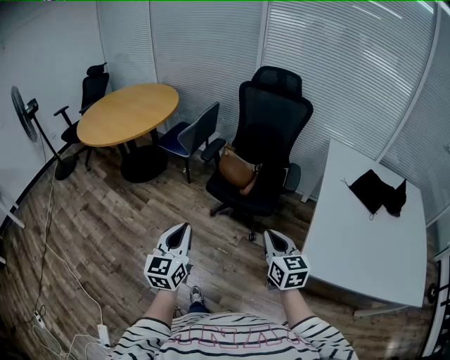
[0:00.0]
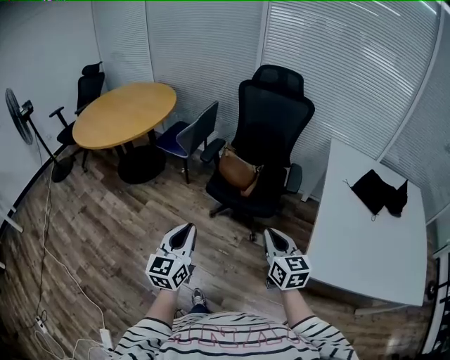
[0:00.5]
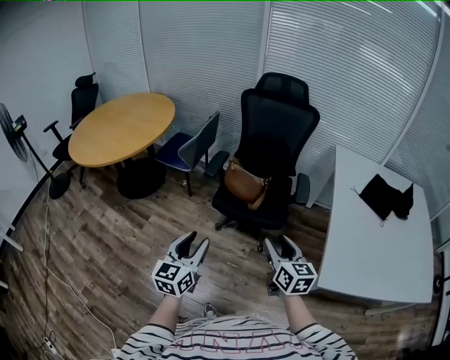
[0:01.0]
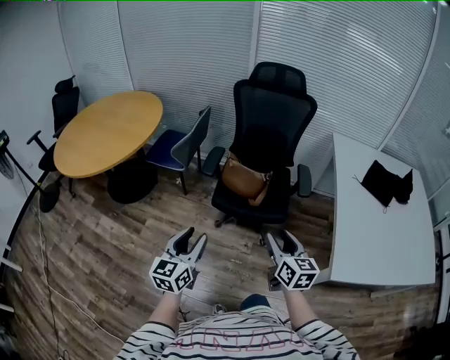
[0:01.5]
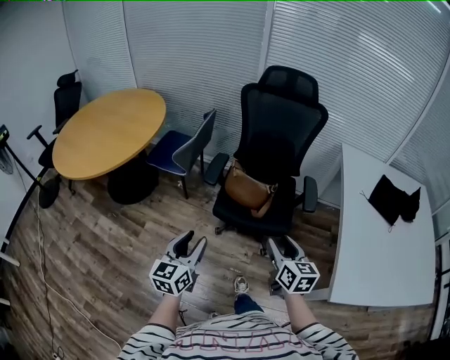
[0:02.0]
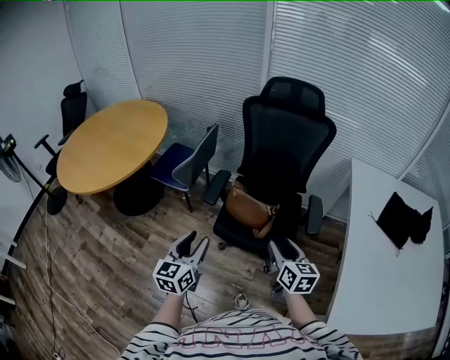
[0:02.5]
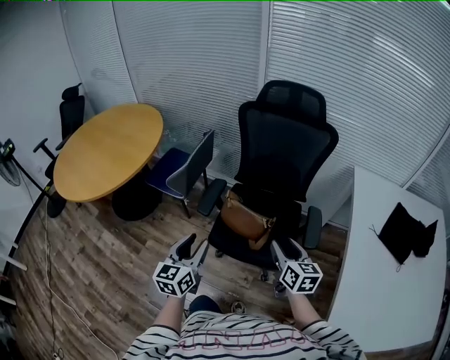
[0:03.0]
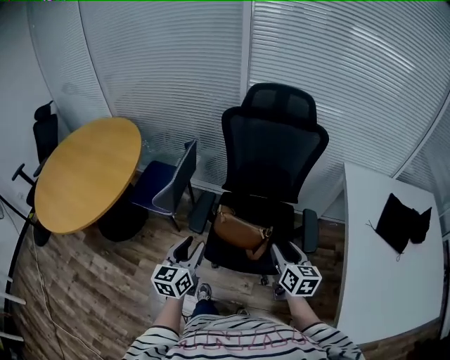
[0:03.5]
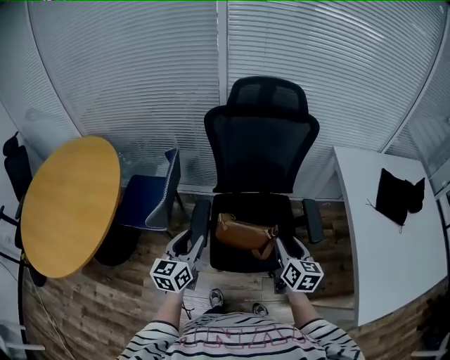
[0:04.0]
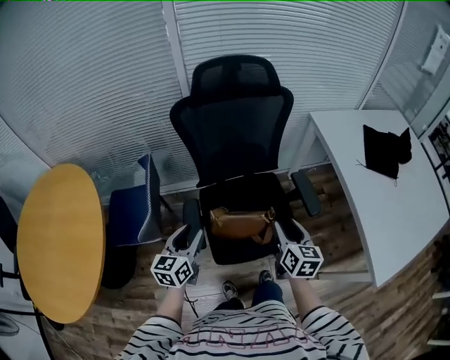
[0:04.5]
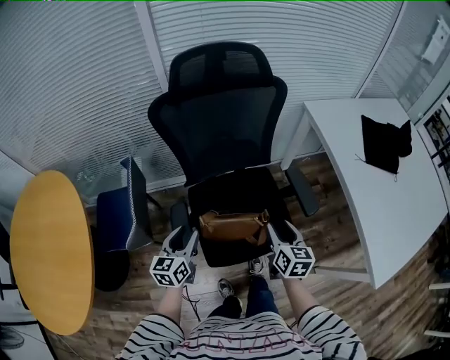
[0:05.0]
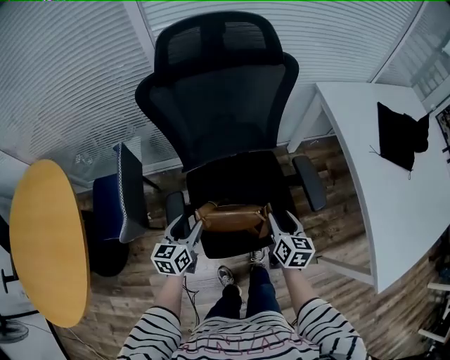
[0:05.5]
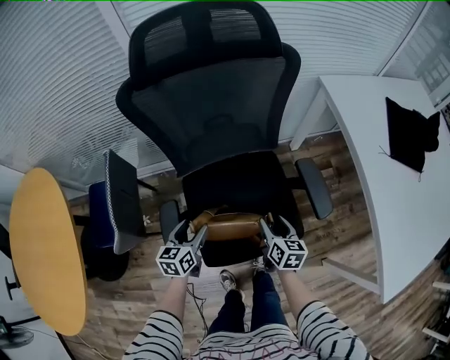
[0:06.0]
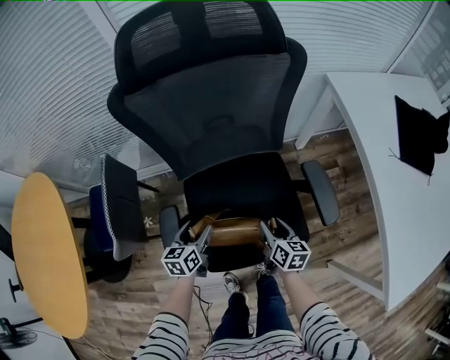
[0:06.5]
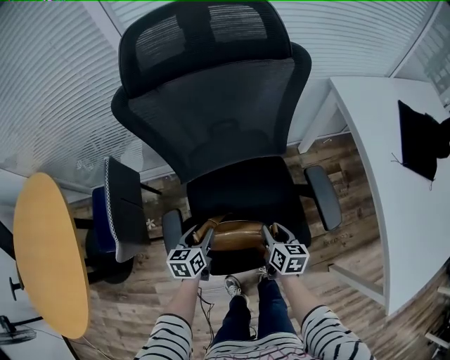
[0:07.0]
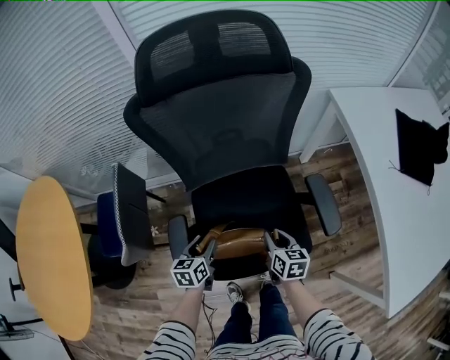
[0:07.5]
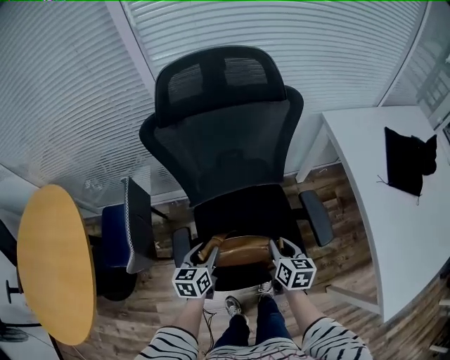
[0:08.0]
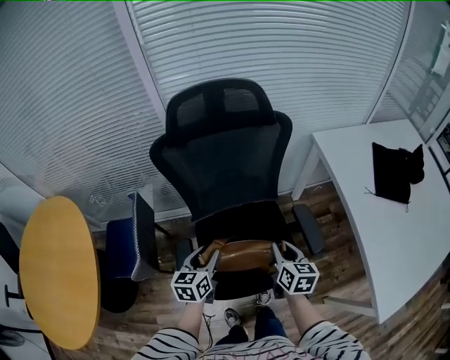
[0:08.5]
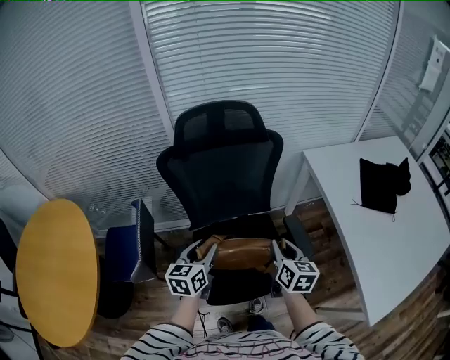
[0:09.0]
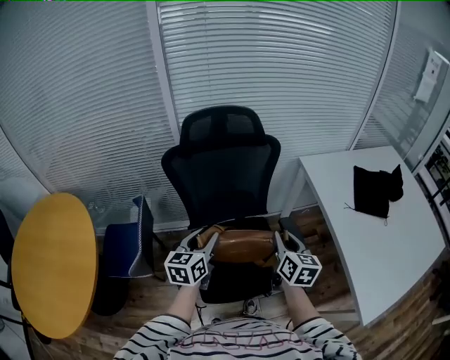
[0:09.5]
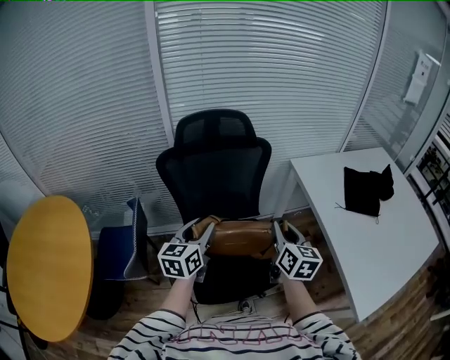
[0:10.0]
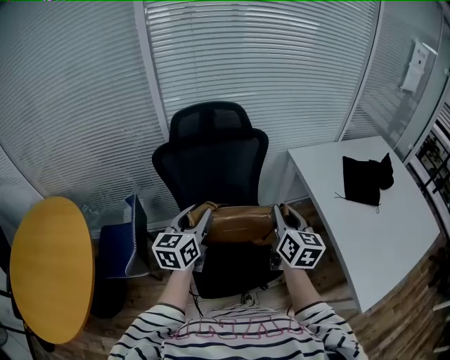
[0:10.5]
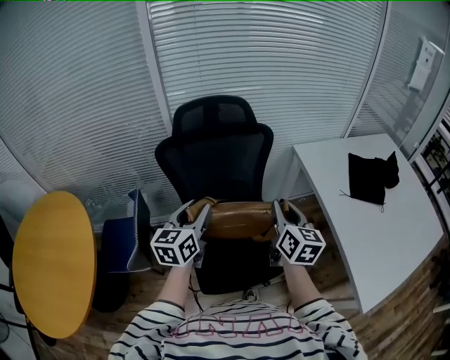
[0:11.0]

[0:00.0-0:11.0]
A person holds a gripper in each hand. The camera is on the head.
0:00.0 to 0:02.0: The two grippers go about 25 cm forward and to the left. The right gripper opens. The left gripper opens up.
0:02.0 to 0:03.5: The grippers both shift forward by about 25 cm.
0:03.5 to 0:05.5: The left gripper moves approximately 30 cm, and rotates roughly 30 degrees; the right gripper travels downward by approximately 15 cm, and rotates roughly 30 degrees.
0:05.5 to 0:07.5: The two grippers go roughly 10 cm downward. The right gripper closes its fingers.
0:07.5 to 0:09.0: Both grippers move upward, about 25 cm.
0:09.0 to 0:11.0: The two grippers go roughly 15 cm upward.

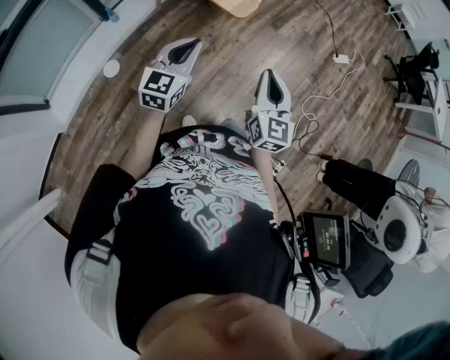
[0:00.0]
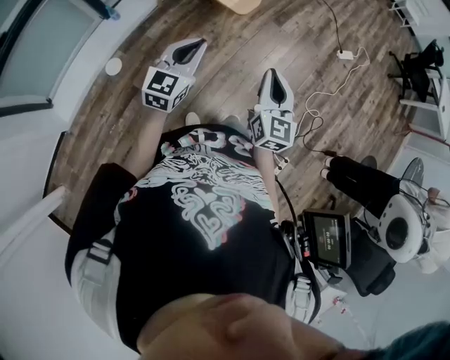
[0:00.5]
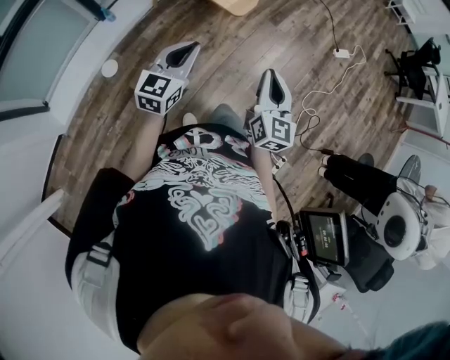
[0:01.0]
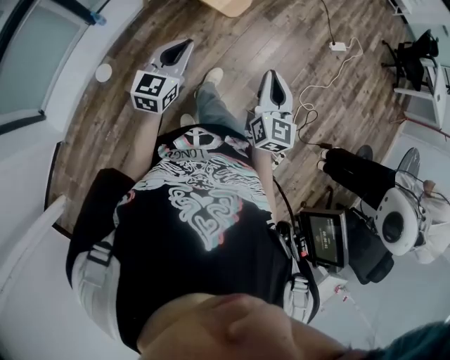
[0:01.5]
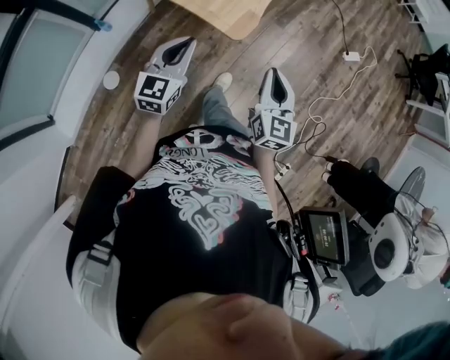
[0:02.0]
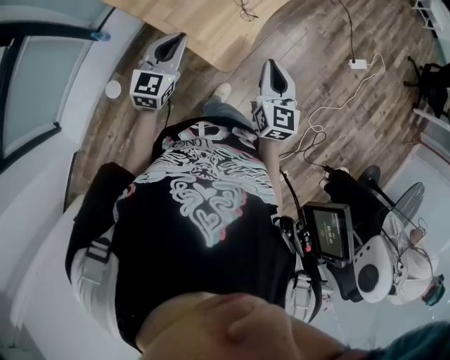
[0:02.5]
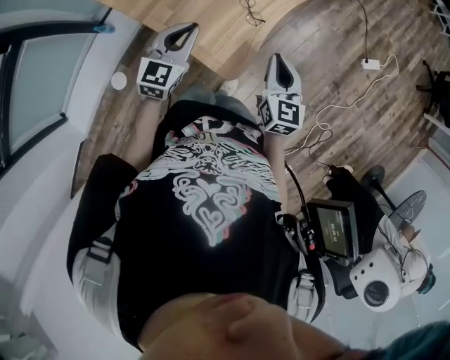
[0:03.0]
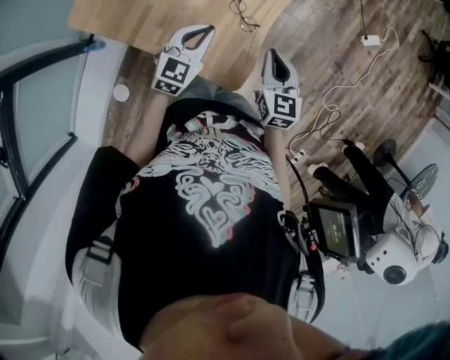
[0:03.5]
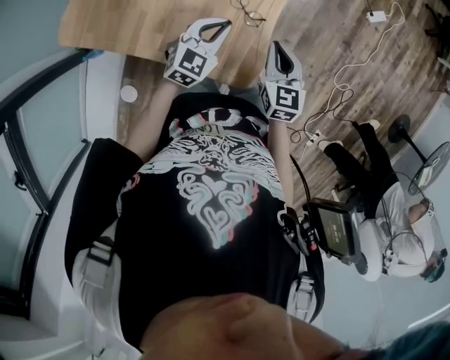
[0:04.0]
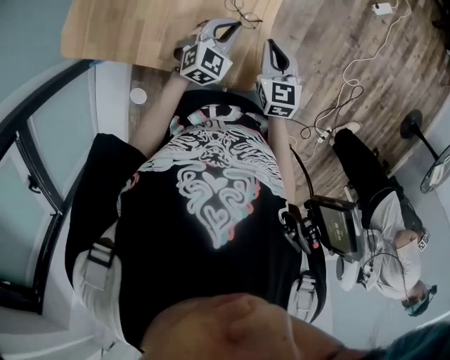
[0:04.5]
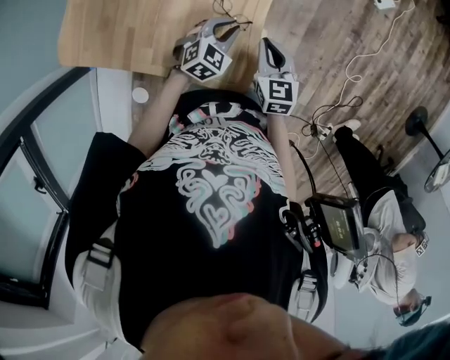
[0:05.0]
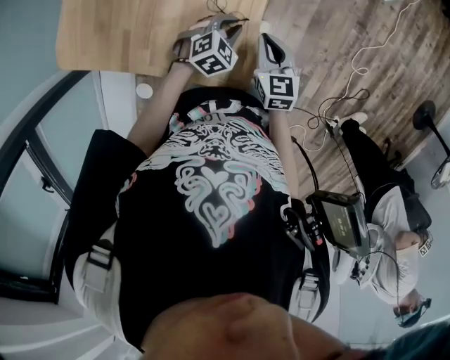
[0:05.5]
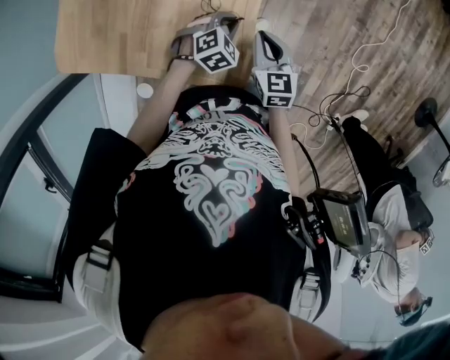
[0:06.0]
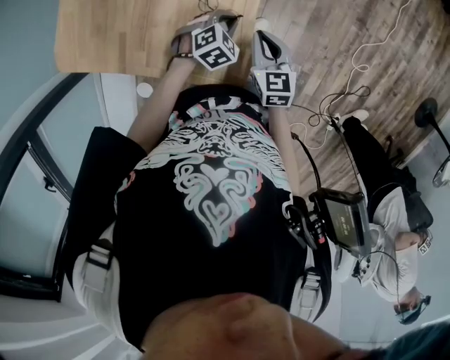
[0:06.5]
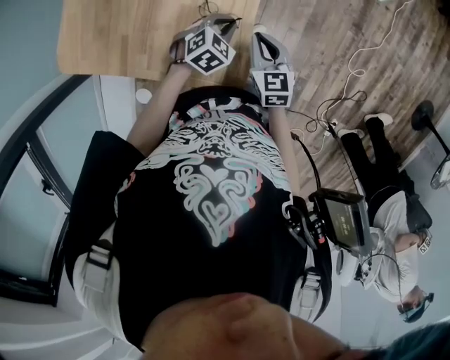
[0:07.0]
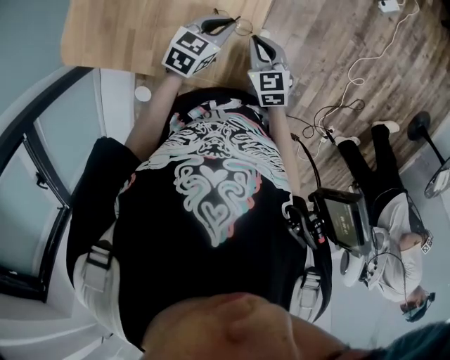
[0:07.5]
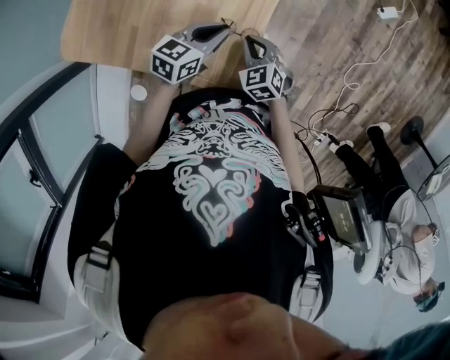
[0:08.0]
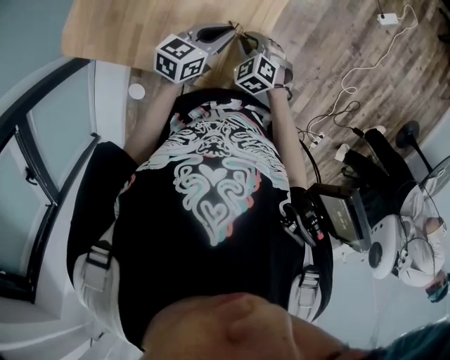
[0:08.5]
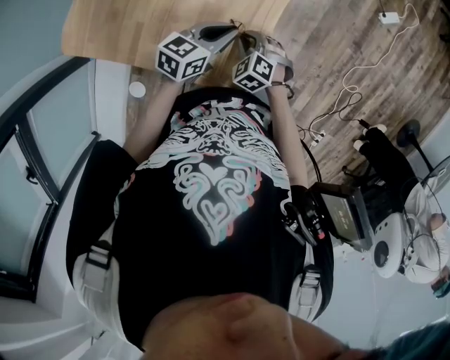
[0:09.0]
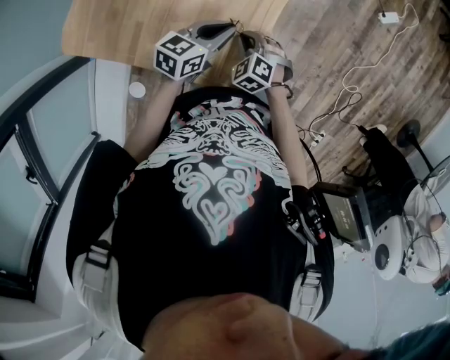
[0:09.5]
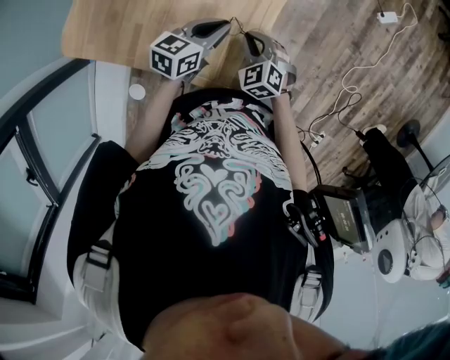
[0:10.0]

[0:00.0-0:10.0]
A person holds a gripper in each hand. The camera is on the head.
0:00.0 to 0:02.0: Both grippers travel together forward, about 20 cm.
0:02.0 to 0:04.0: Both grippers move forward and downward, about 25 cm. The left gripper swivels roughly 30 degrees.
0:04.0 to 0:06.0: The right gripper heads downward, covering approximately 5 cm. Meanwhile the left gripper moves downward and to the right, approximately 15 cm, and tips its fingers downward by some 30 degrees.
0:06.0 to 0:08.0: The left gripper moves upward and to the left, about 10 cm, and angles its fingers upward, by some 30 degrees; the right gripper heads to the left, covering approximately 5 cm, and turns by roughly 30 degrees.

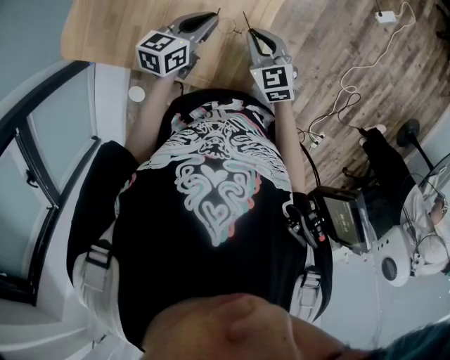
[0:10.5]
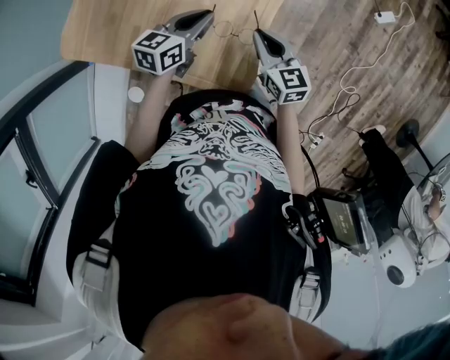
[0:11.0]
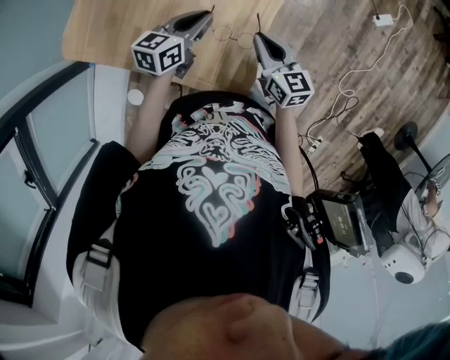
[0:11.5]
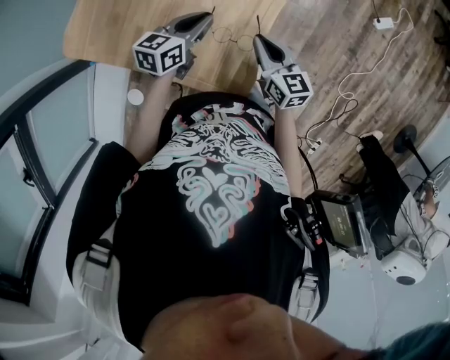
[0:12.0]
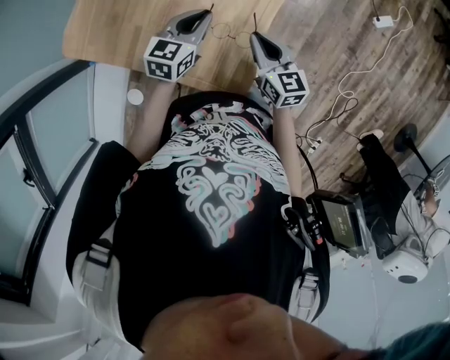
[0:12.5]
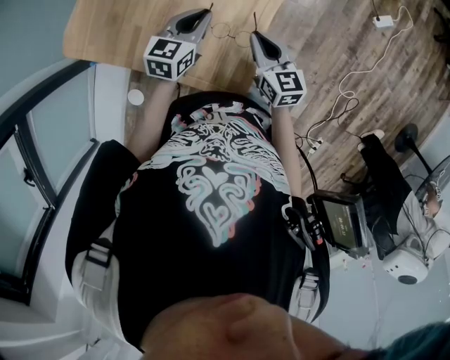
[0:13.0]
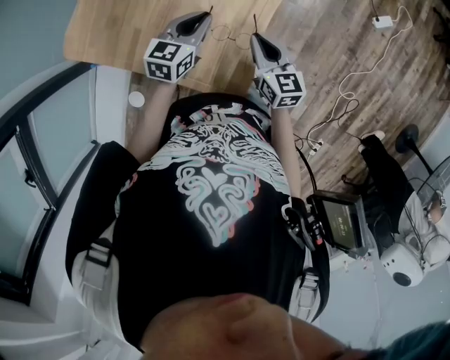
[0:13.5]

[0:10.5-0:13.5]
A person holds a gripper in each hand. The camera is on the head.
0:10.5 to 0:12.0: The right gripper changes its angle by approximately 30 degrees.
0:12.0 to 0:13.5: The grippers make only small movements.

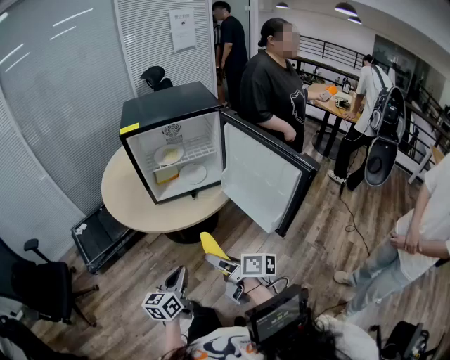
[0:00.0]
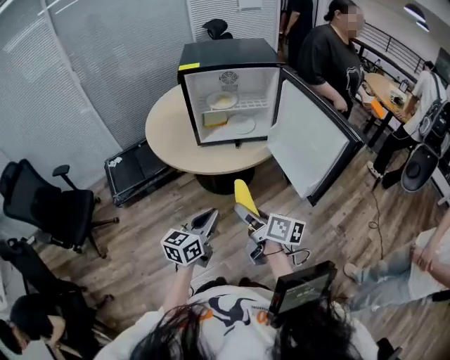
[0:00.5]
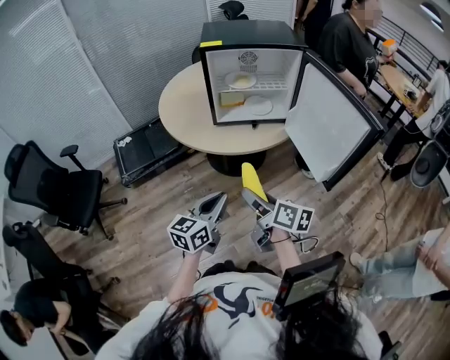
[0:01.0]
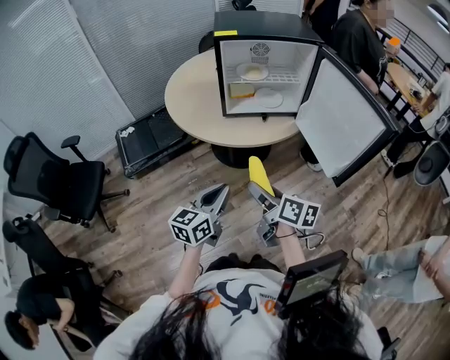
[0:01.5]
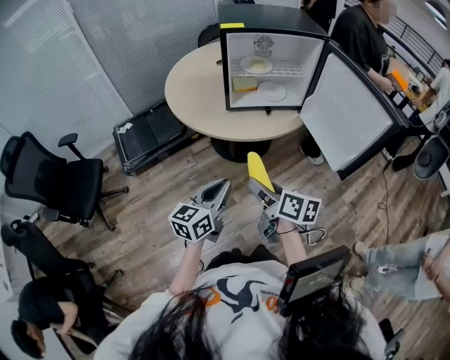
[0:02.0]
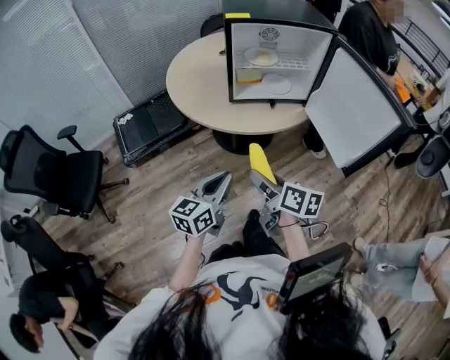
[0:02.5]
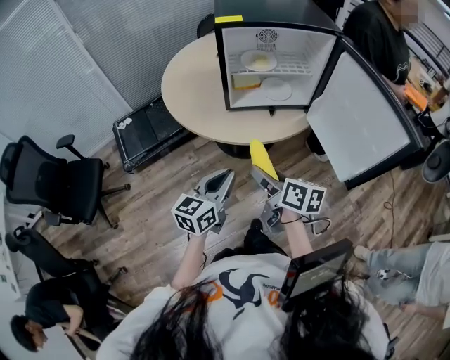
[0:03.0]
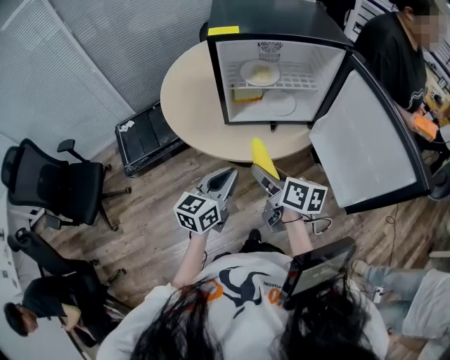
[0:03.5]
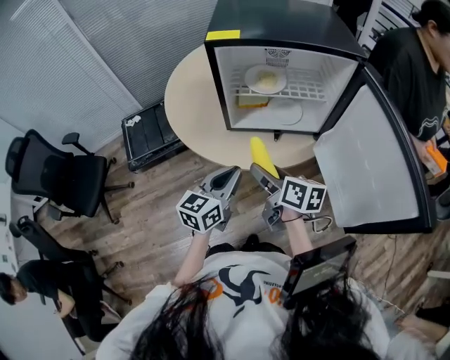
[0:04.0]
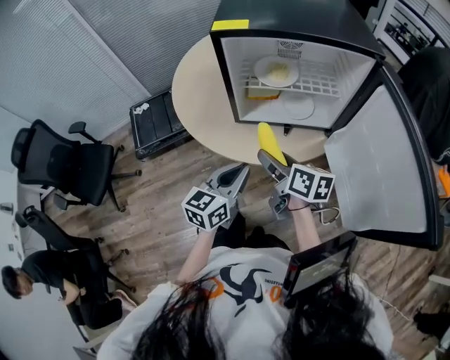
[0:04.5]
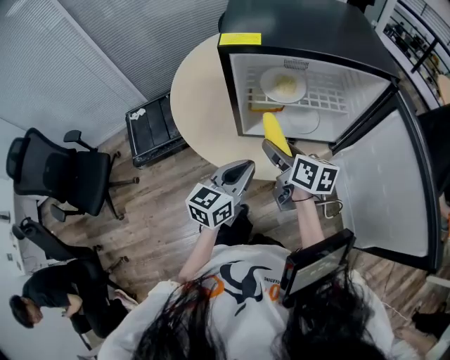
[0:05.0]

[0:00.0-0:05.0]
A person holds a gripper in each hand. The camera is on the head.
0:00.0 to 0:02.5: Both grippers travel together to the left, approximately 10 cm.
0:02.5 to 0:05.0: The two grippers go about 30 cm forward.
